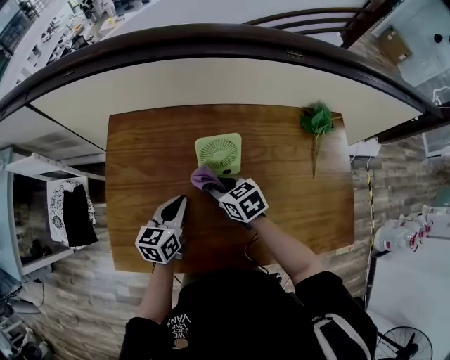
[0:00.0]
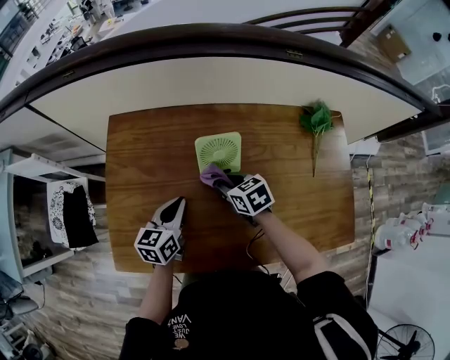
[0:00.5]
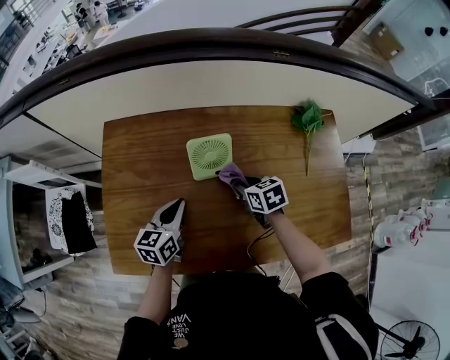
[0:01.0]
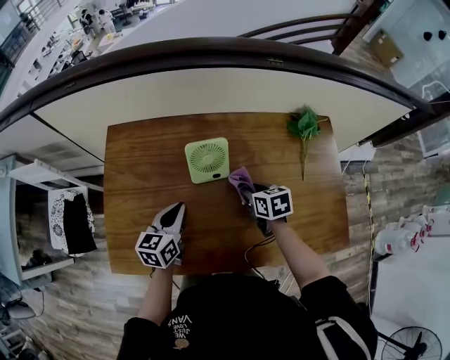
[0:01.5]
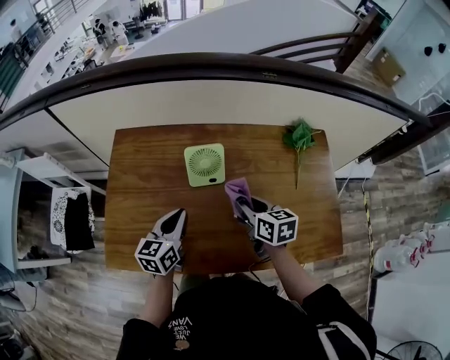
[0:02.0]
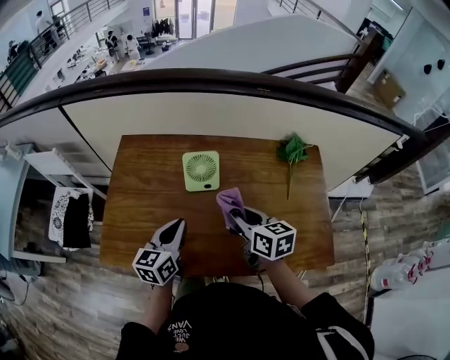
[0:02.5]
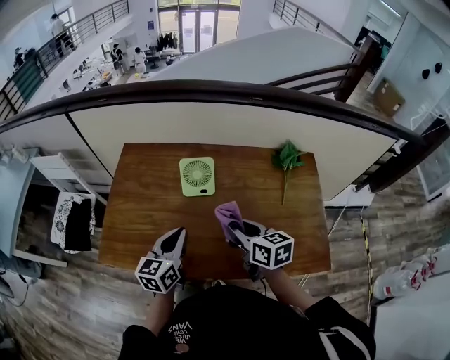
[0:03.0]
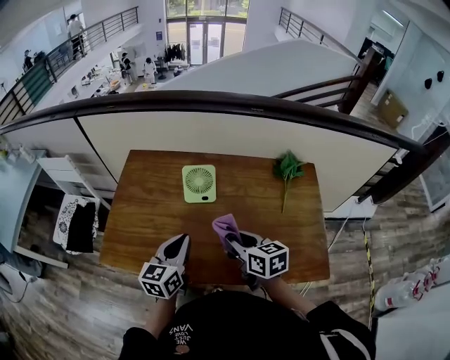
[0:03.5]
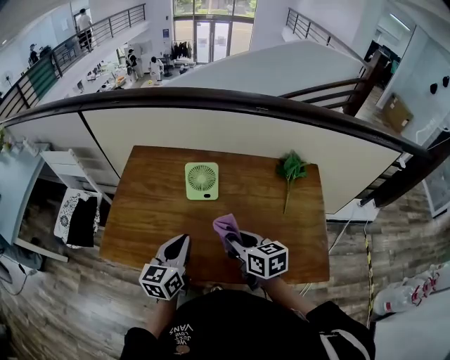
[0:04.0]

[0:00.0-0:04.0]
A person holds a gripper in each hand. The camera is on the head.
0:00.0 to 0:02.0: The right gripper moves to the right, upward and backward, about 15 cm, and rotates approximately 30 degrees. Meanwhile the left gripper shifts roughly 5 cm upward.
0:02.0 to 0:04.0: The left gripper travels backward and upward by roughly 10 cm. The right gripper heads backward, covering roughly 10 cm.

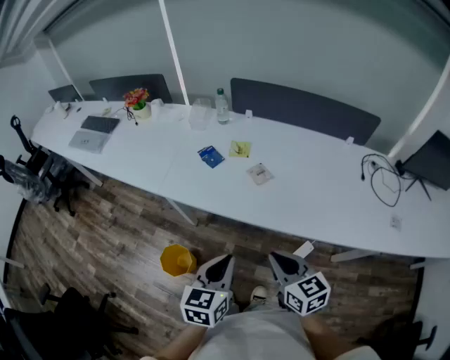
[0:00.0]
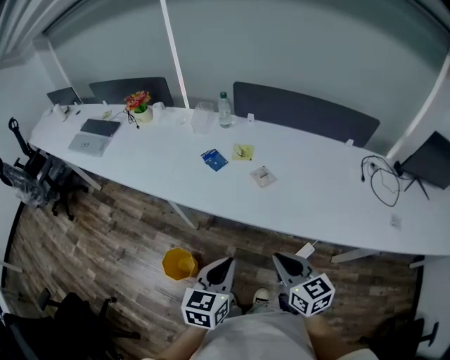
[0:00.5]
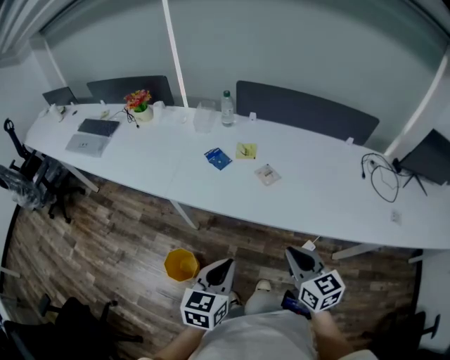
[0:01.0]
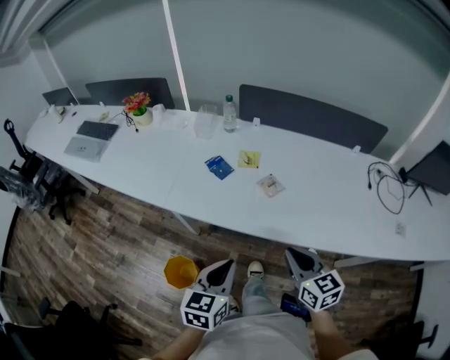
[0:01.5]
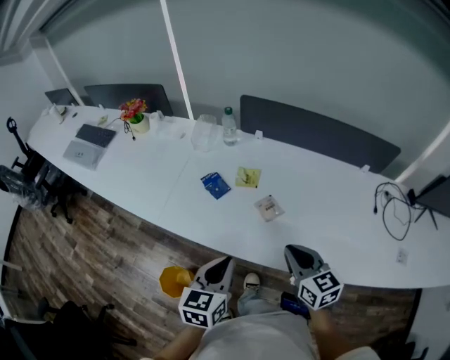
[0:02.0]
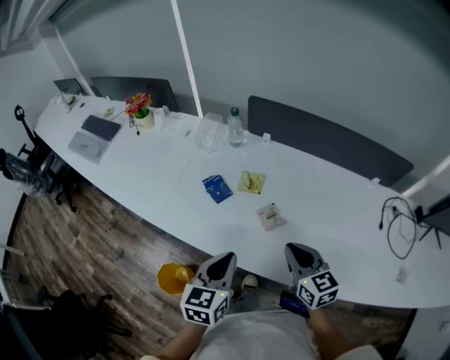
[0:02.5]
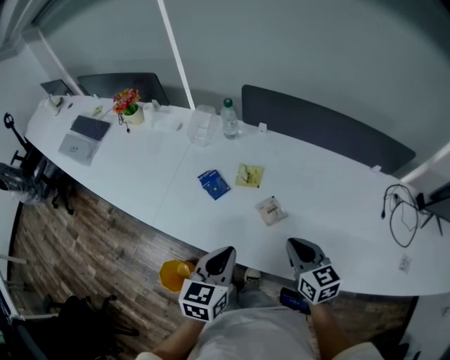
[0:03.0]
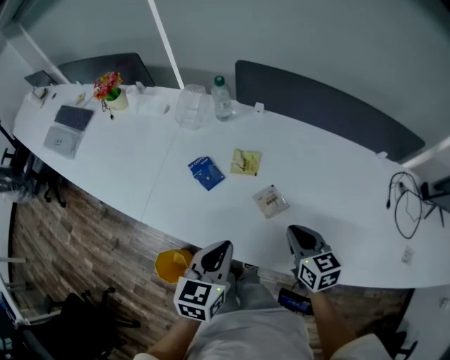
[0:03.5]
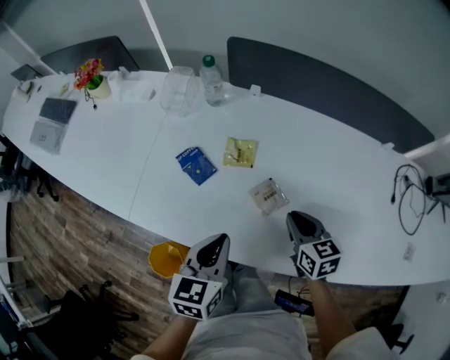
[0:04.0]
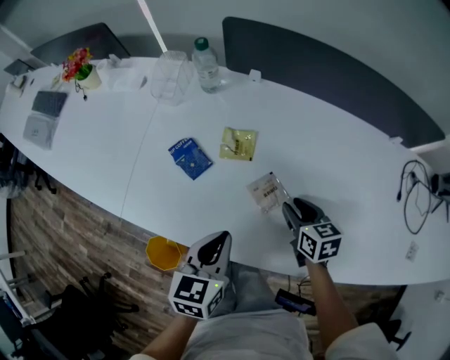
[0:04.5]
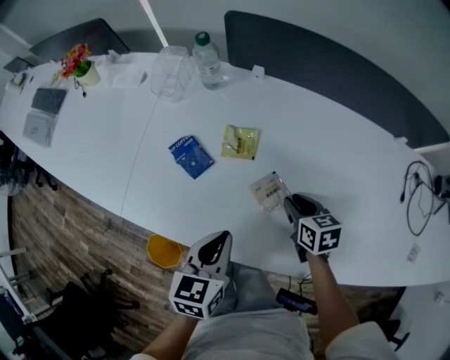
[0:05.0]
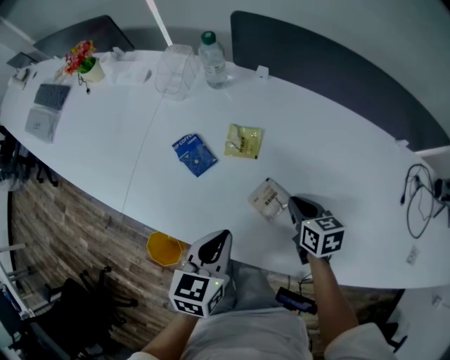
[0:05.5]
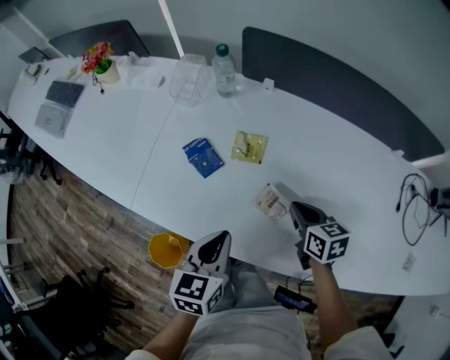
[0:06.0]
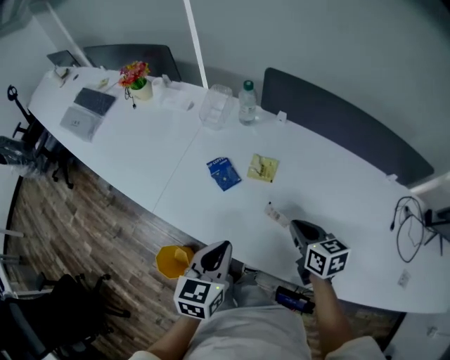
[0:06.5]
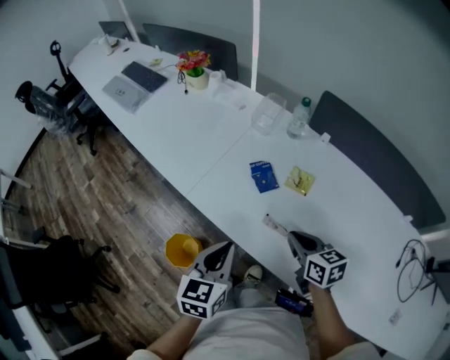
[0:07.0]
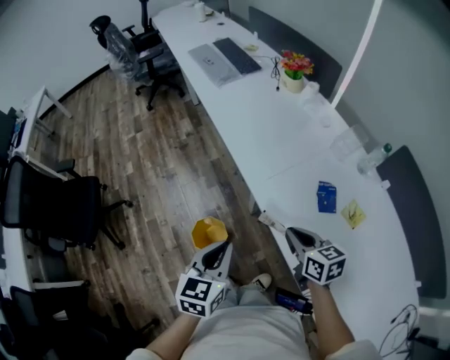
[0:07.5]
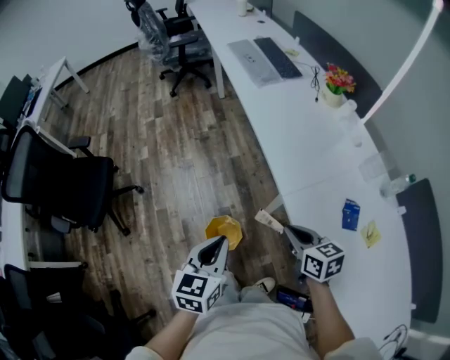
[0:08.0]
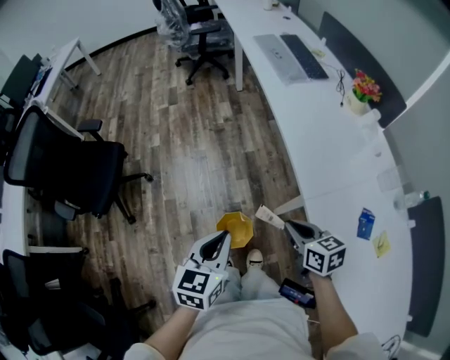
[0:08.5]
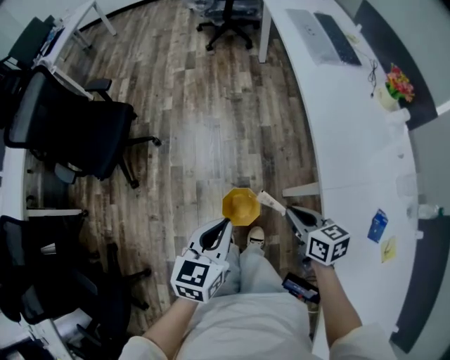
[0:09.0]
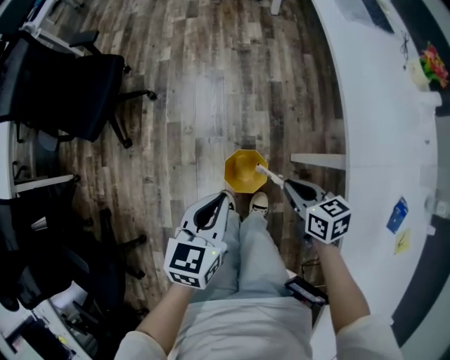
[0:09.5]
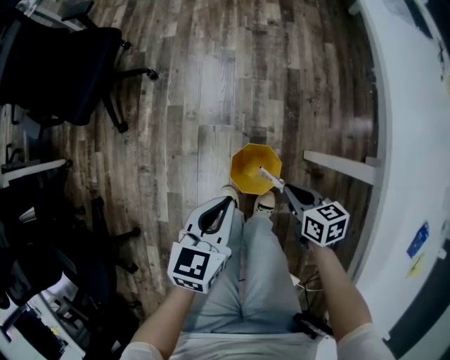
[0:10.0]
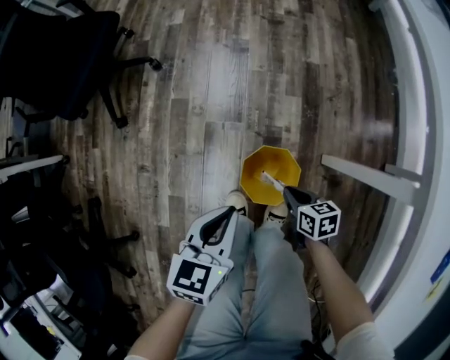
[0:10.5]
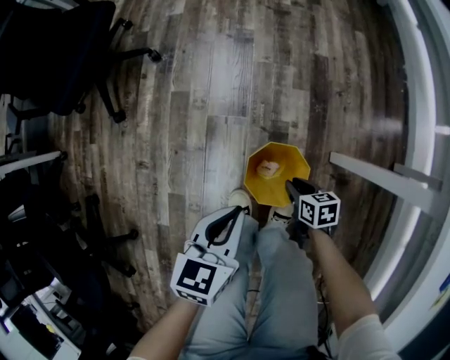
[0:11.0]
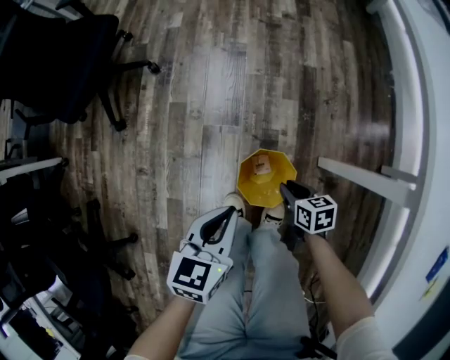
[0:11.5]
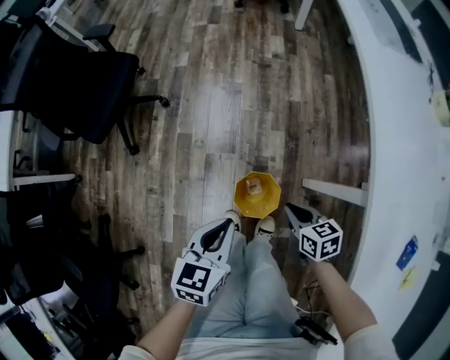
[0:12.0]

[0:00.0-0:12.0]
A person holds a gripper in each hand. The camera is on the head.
0:00.0 to 0:02.0: The grippers both shift forward by about 15 cm.
0:02.0 to 0:04.0: The left gripper shifts about 15 cm forward and downward. The right gripper moves downward and forward, approximately 20 cm.
0:04.0 to 0:06.0: The right gripper opens, then closes again.
0:06.0 to 0:08.0: The two grippers travel together, about 40 cm. The right gripper changes its angle by roughly 60 degrees, while the left gripper rotates approximately 50 degrees.
0:08.0 to 0:10.0: Both grippers move downward and to the left, some 30 cm. The right gripper rotates approximately 30 degrees.
0:10.0 to 0:12.0: The right gripper reaches approximately 25 cm downward, then returns. Meanwhile the left gripper reaches roughly 15 cm downward, then returns.

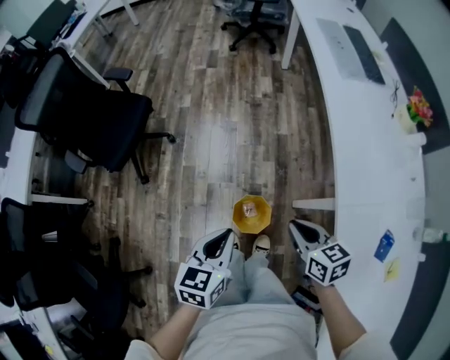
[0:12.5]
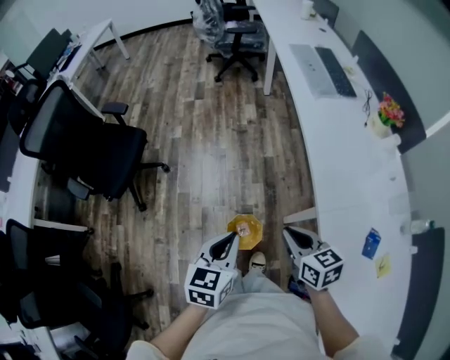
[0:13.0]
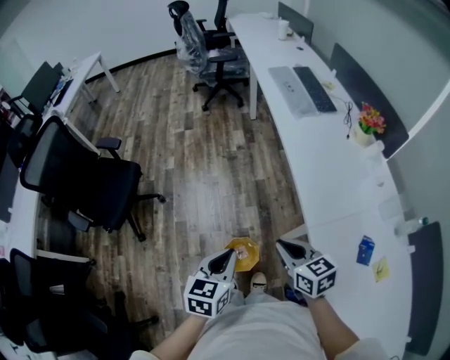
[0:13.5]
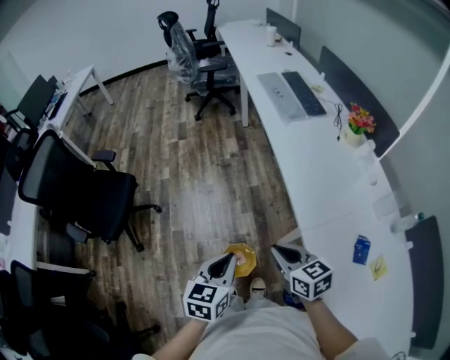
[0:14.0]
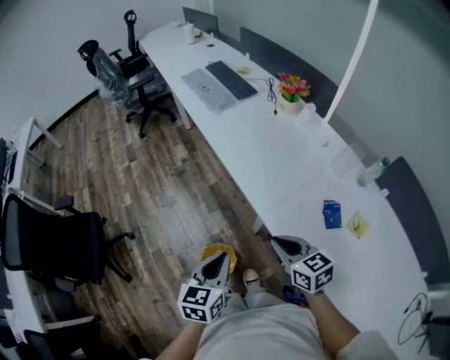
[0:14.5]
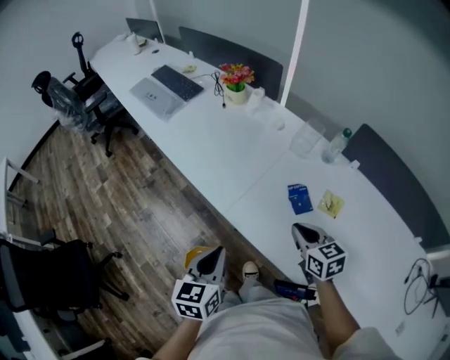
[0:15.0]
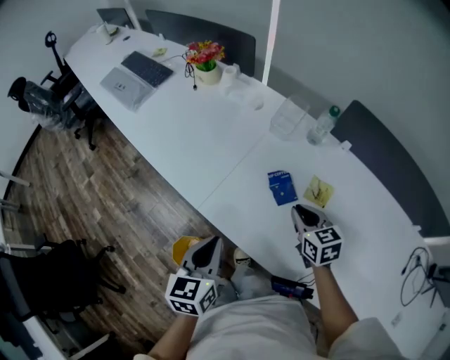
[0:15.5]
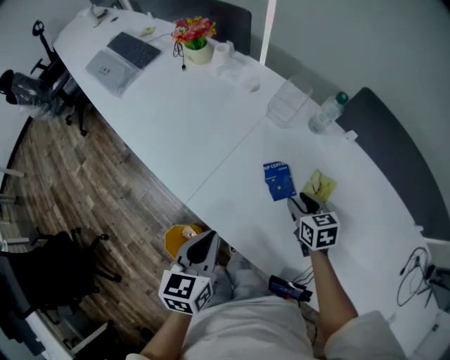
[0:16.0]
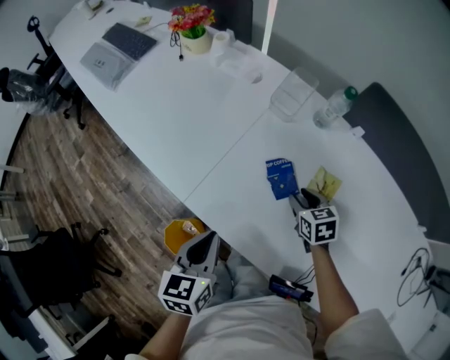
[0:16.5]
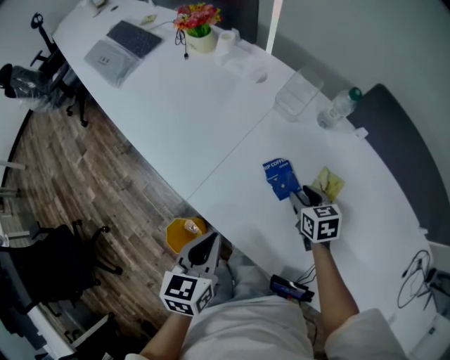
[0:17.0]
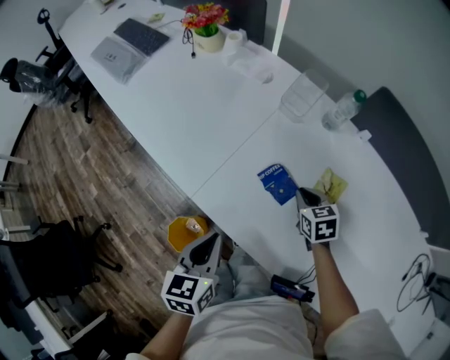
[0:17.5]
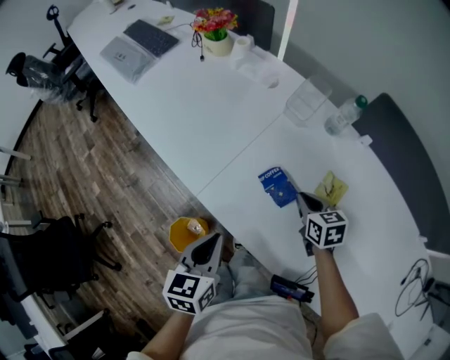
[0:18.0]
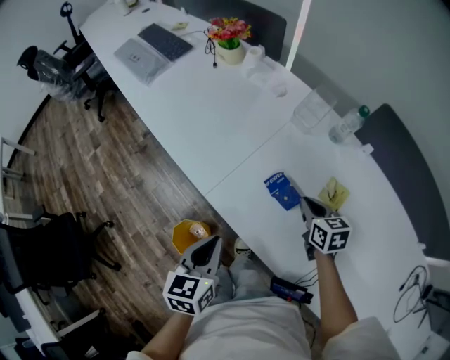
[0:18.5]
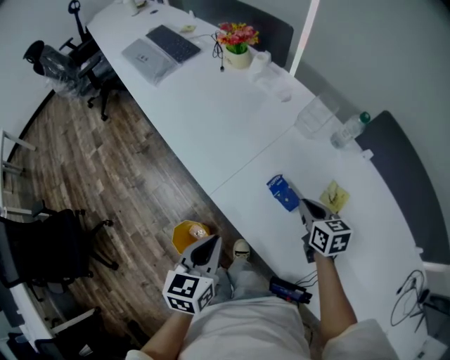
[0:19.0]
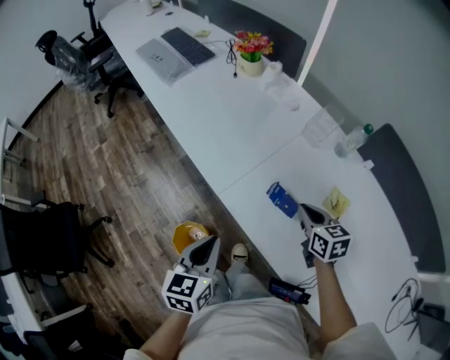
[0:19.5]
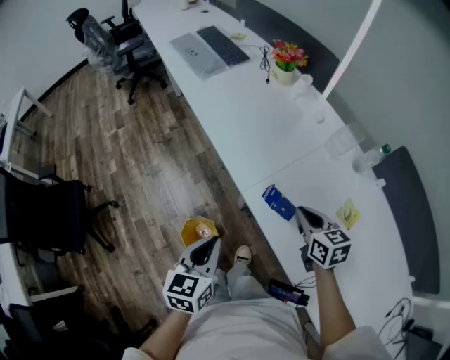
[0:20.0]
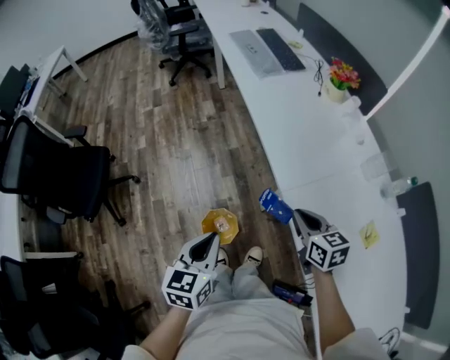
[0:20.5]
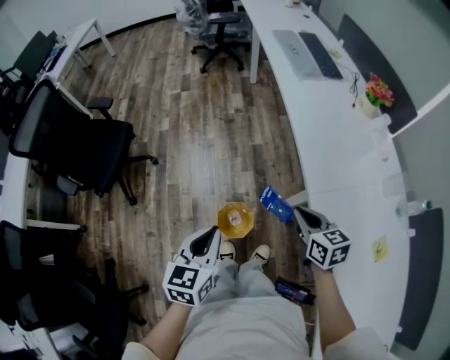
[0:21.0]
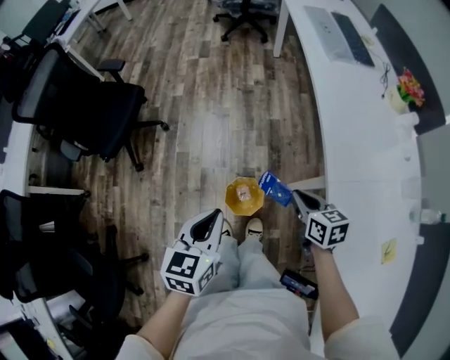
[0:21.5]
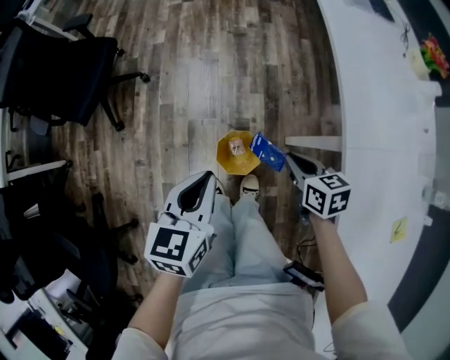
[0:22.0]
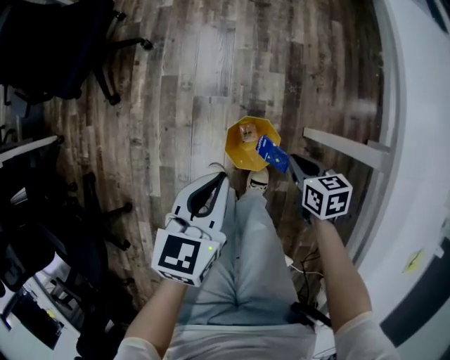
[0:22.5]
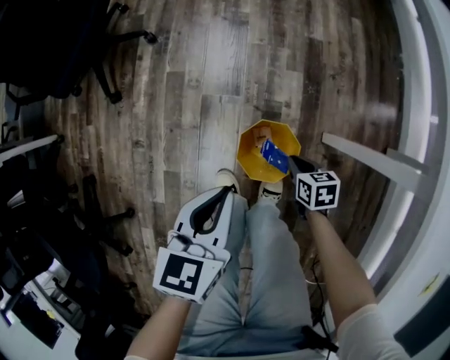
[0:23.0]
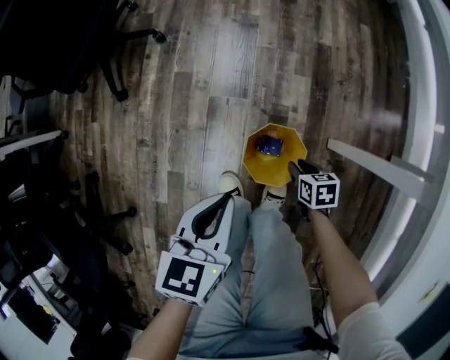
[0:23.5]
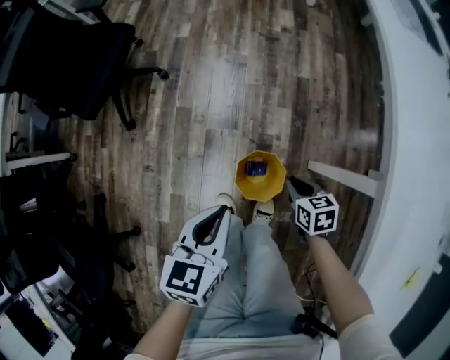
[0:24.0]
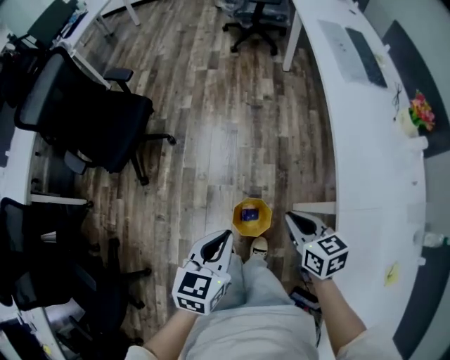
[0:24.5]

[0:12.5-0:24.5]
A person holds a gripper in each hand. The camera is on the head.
0:12.5 to 0:14.5: The left gripper moves about 20 cm, and changes its angle by approximately 30 degrees. Meanwhile the right gripper moves approximately 20 cm, and rotates roughly 30 degrees.
0:14.5 to 0:16.5: The left gripper shifts by about 25 cm, while the right gripper ends up about 40 cm from where it was, swivels about 40 degrees, and opens its fingers.
0:16.5 to 0:18.5: The right gripper goes approximately 5 cm upward, and closes up, while the left gripper changes place by about 5 cm.
0:18.5 to 0:20.5: The right gripper changes place by roughly 30 cm, and turns by about 30 degrees, while the left gripper shifts by some 25 cm, and swivels roughly 30 degrees.
0:20.5 to 0:22.5: The right gripper heads downward, covering about 35 cm, and rotates approximately 30 degrees. The left gripper moves downward, approximately 20 cm.
0:22.5 to 0:24.5: The right gripper shifts roughly 30 cm upward, and opens, then closes again; the left gripper is displaced upward by some 20 cm.
